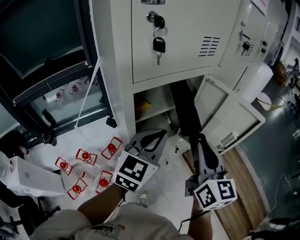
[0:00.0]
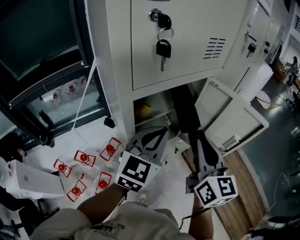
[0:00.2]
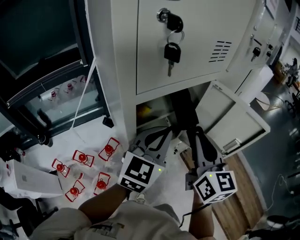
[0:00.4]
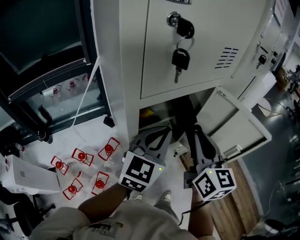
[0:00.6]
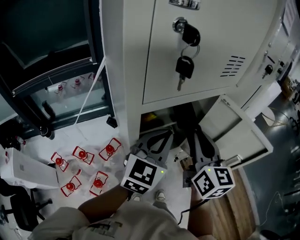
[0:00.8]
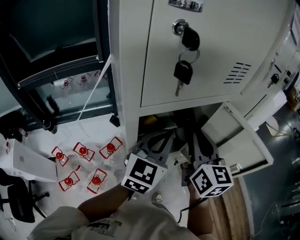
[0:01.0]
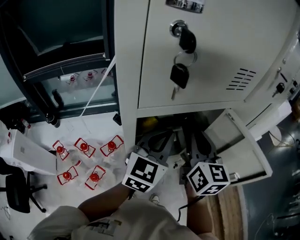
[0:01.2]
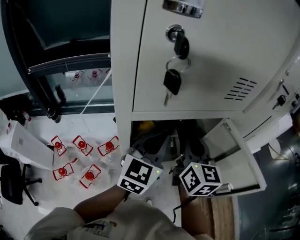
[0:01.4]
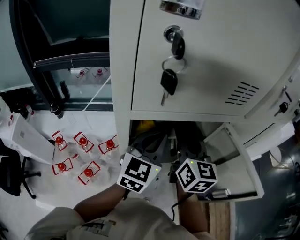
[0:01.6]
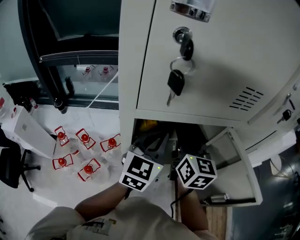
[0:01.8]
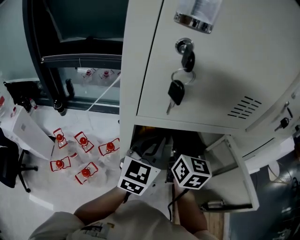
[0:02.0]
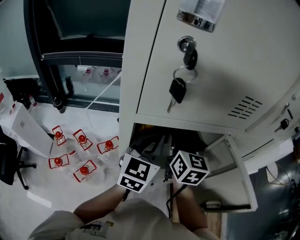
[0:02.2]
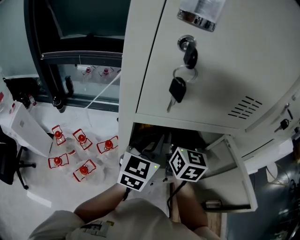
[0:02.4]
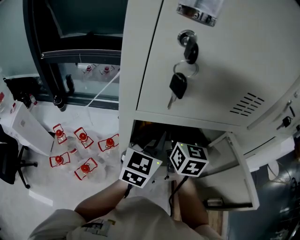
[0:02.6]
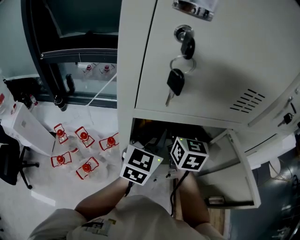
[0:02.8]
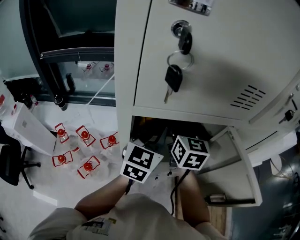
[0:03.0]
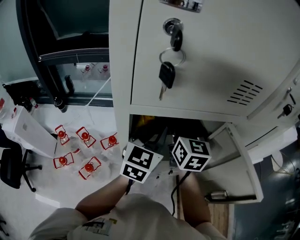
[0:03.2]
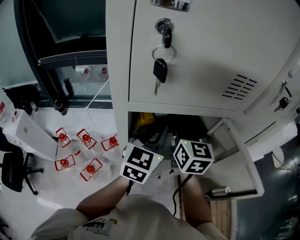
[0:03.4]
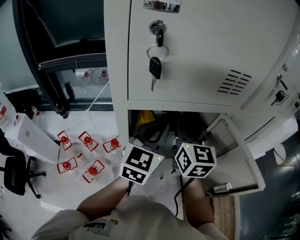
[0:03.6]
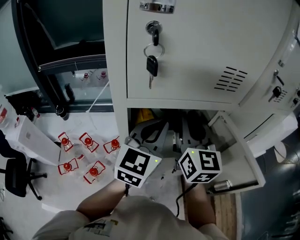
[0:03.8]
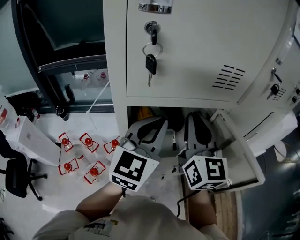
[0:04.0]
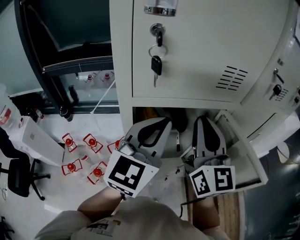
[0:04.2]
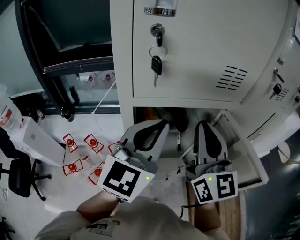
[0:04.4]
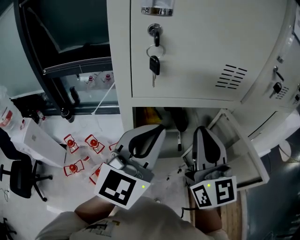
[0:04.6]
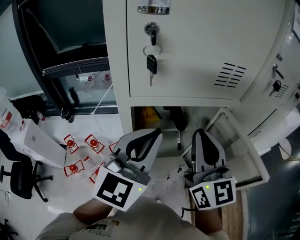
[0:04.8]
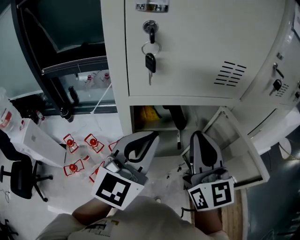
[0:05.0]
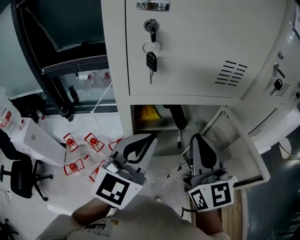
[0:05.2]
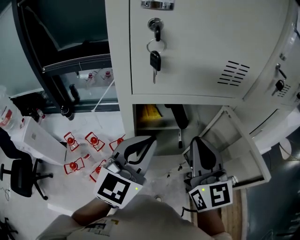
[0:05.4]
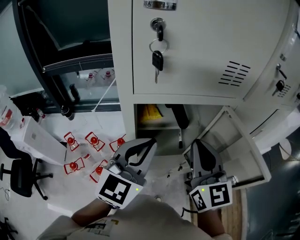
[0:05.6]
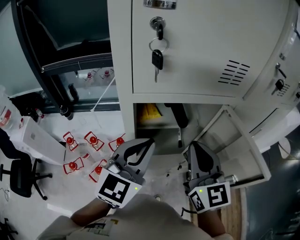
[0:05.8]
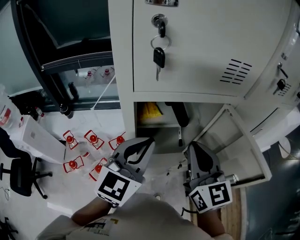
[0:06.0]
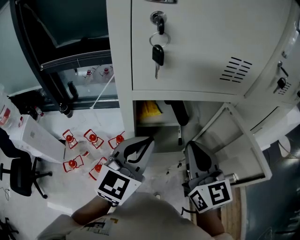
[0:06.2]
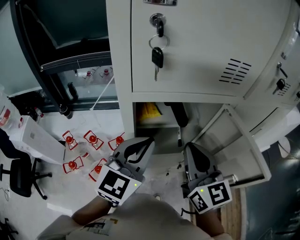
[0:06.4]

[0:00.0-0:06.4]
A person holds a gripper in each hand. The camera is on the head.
0:00.0 to 0:01.6: The right gripper heads forward and to the left, covering some 20 cm. Meanwhile the left gripper travels forward by some 10 cm, and swivels roughly 20 degrees.
0:01.6 to 0:03.2: The right gripper travels forward by approximately 5 cm, and opens its fingers.
0:03.2 to 0:04.8: The two grippers go some 20 cm backward and upward. The right gripper changes its angle by approximately 20 degrees, and closes up.
0:04.8 to 0:06.4: The grippers both shift downward by about 5 cm.

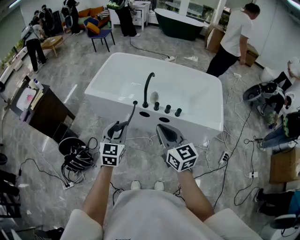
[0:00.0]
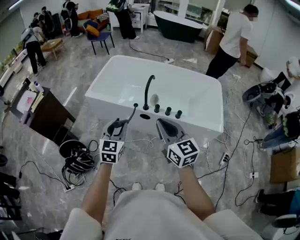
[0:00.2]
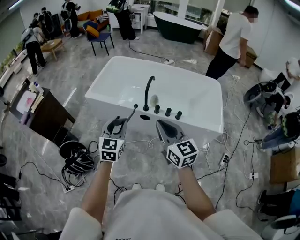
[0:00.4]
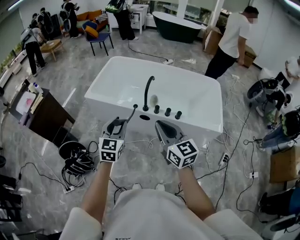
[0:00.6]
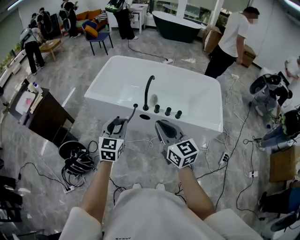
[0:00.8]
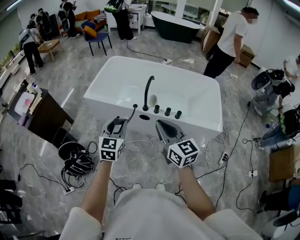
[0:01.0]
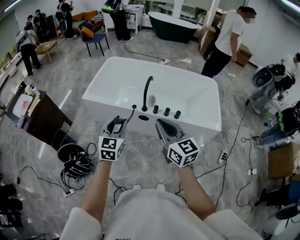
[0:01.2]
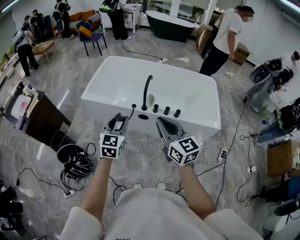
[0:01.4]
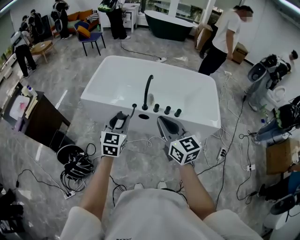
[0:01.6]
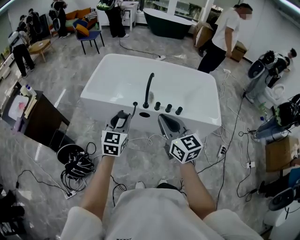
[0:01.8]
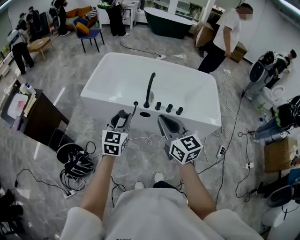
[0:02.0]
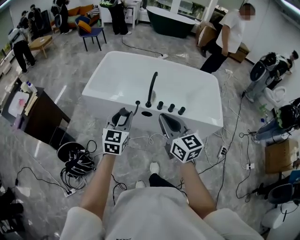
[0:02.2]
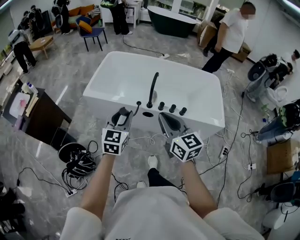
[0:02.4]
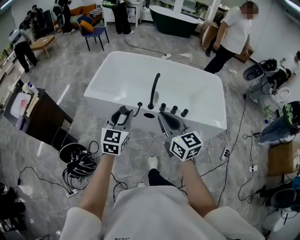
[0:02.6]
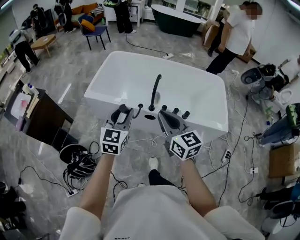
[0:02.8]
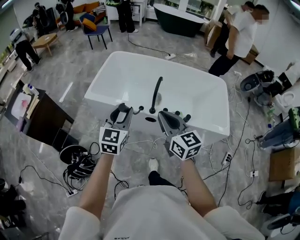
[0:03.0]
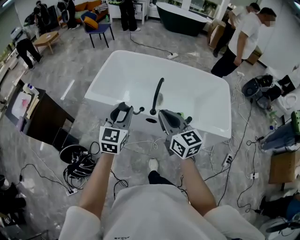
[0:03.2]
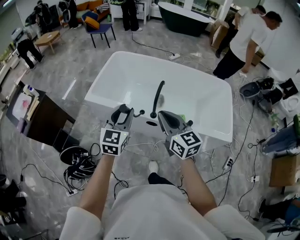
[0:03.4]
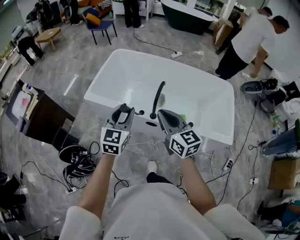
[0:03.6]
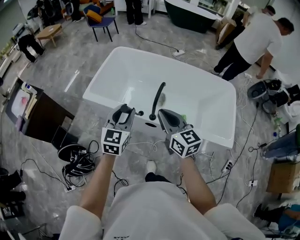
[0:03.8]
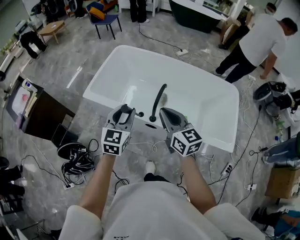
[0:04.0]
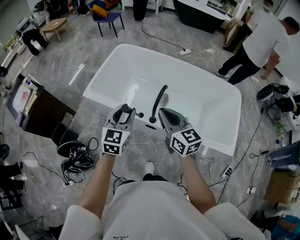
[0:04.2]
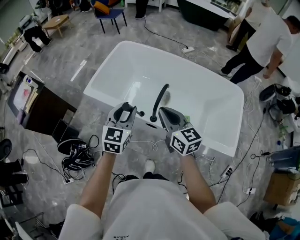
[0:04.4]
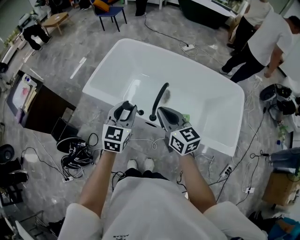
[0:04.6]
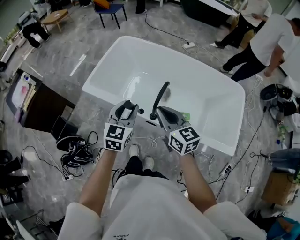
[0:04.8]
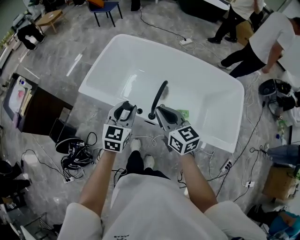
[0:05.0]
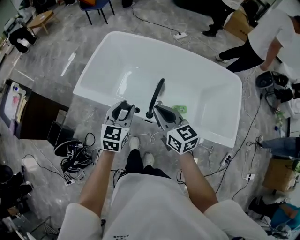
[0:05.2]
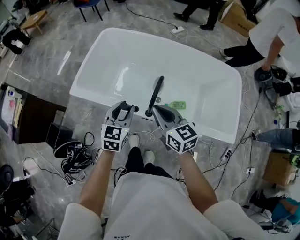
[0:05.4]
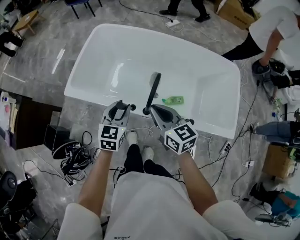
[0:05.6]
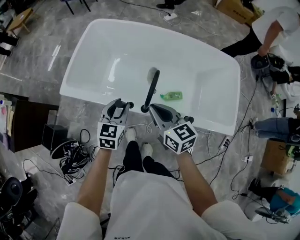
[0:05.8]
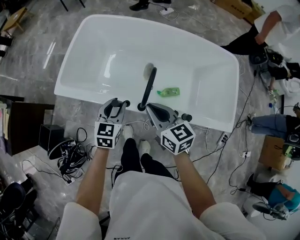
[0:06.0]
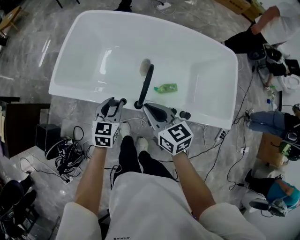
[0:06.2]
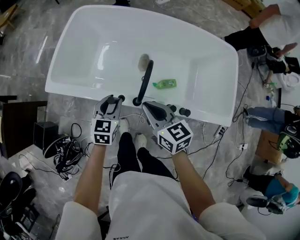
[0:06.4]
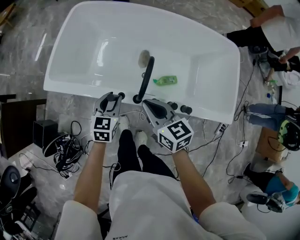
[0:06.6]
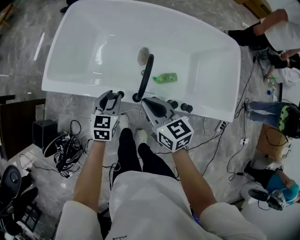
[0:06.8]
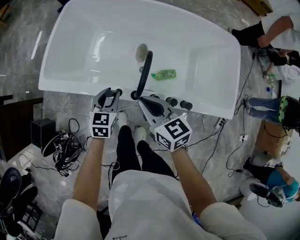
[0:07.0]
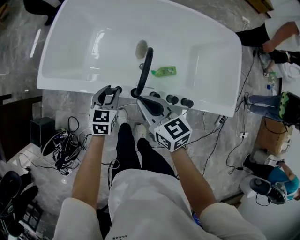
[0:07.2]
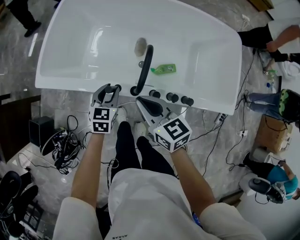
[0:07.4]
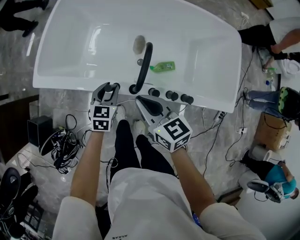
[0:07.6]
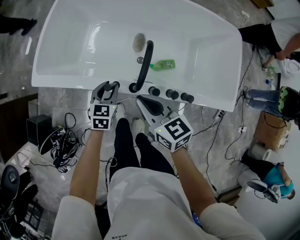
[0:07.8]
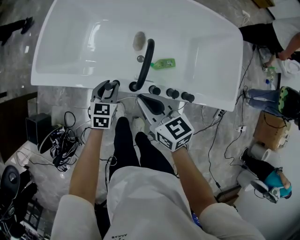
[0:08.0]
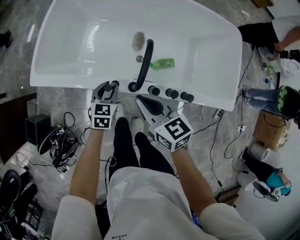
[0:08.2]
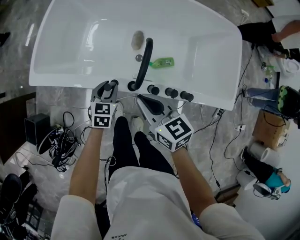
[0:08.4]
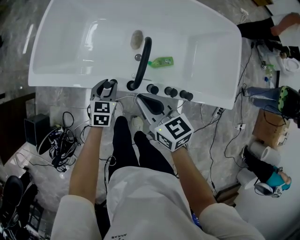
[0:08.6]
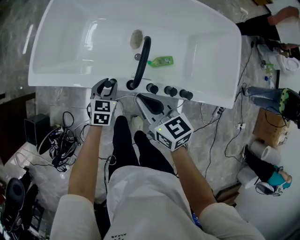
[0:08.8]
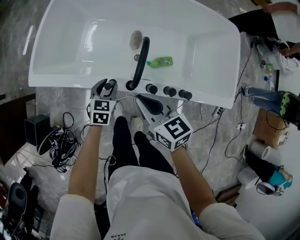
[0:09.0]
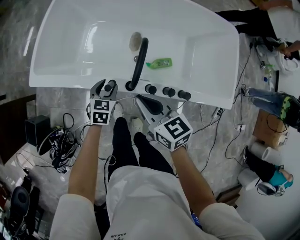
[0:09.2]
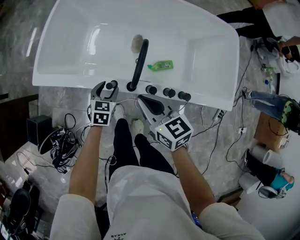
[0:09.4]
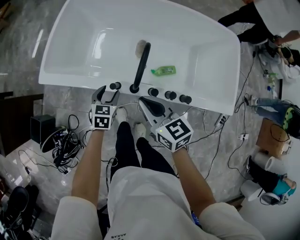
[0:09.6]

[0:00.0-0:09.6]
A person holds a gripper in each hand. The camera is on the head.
0:00.0 to 0:01.6: The left gripper travels forward by about 5 cm, while the right gripper shifts by some 5 cm.
0:01.6 to 0:03.2: Both grippers move forward, approximately 10 cm.
0:03.2 to 0:04.8: The right gripper goes roughly 15 cm forward and downward. The left gripper goes approximately 15 cm forward, downward and to the right.
0:04.8 to 0:06.4: The left gripper heads downward and forward, covering roughly 20 cm, while the right gripper goes roughly 15 cm downward and forward.
0:06.4 to 0:08.0: The left gripper is displaced downward by some 10 cm.
0:08.0 to 0:09.6: The left gripper opens up.

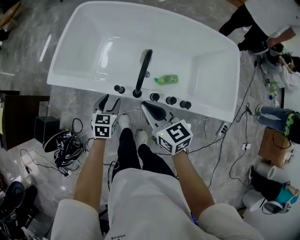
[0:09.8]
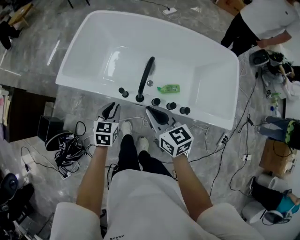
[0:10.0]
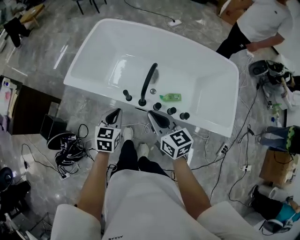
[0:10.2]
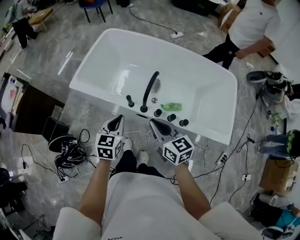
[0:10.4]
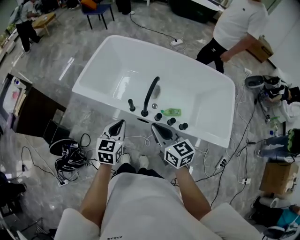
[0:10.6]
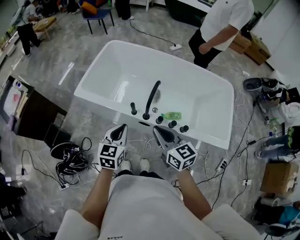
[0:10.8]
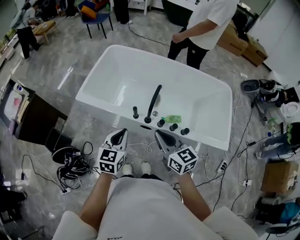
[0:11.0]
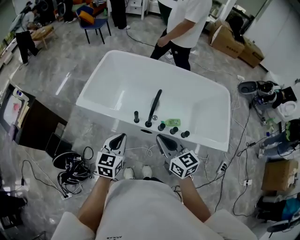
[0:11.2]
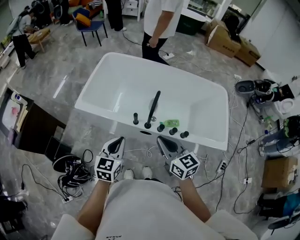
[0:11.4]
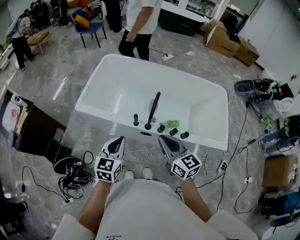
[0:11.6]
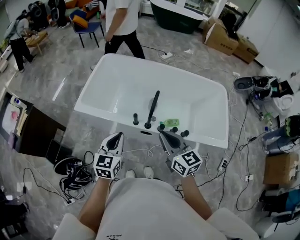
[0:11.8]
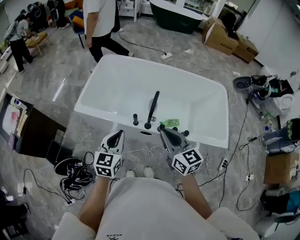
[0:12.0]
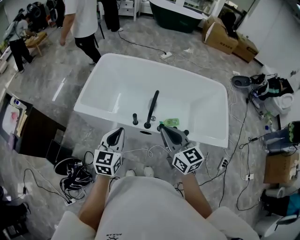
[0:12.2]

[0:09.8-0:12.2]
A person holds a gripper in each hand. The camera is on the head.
0:09.8 to 0:11.0: The left gripper travels upward and backward by some 25 cm, and closes. The right gripper goes some 15 cm upward and backward.
0:11.0 to 0:12.2: The right gripper shifts by some 5 cm, while the left gripper changes place by approximately 5 cm.

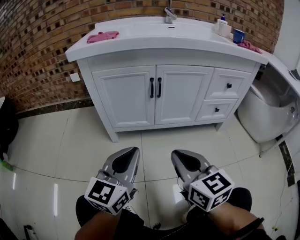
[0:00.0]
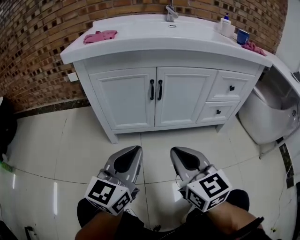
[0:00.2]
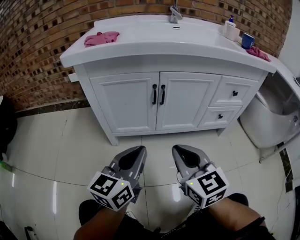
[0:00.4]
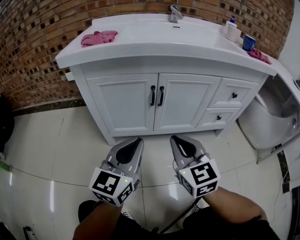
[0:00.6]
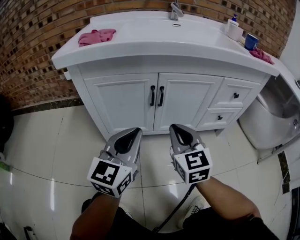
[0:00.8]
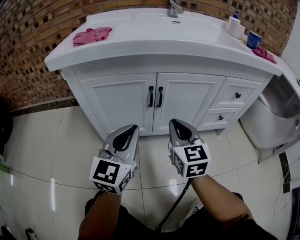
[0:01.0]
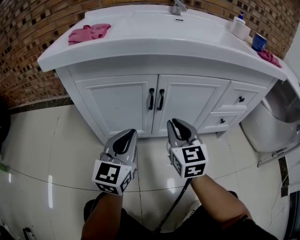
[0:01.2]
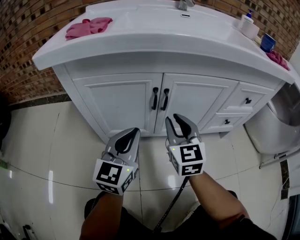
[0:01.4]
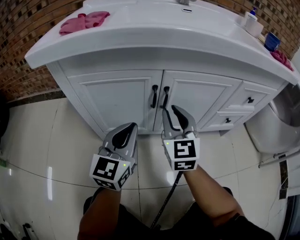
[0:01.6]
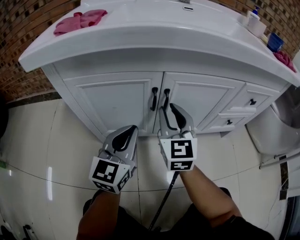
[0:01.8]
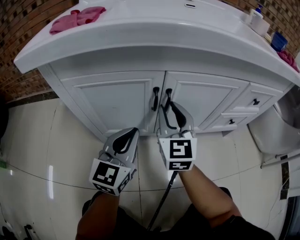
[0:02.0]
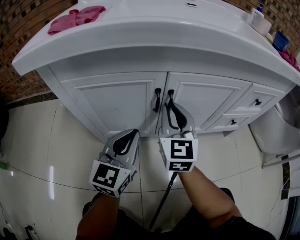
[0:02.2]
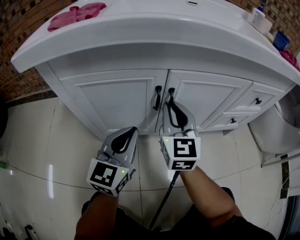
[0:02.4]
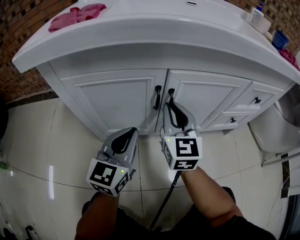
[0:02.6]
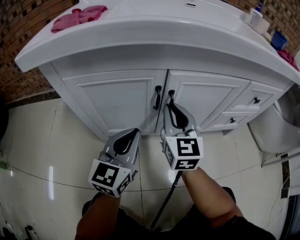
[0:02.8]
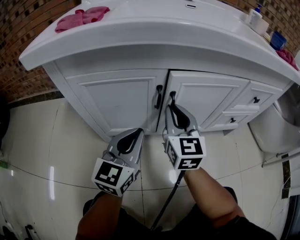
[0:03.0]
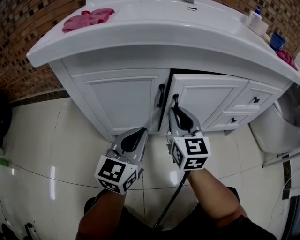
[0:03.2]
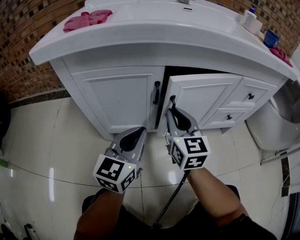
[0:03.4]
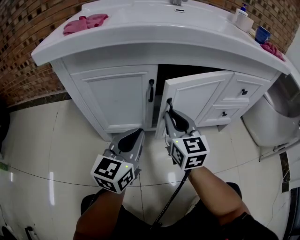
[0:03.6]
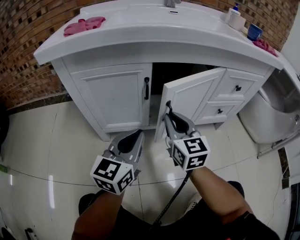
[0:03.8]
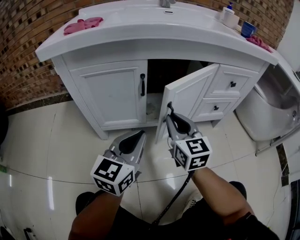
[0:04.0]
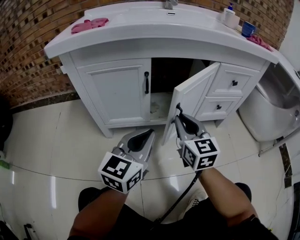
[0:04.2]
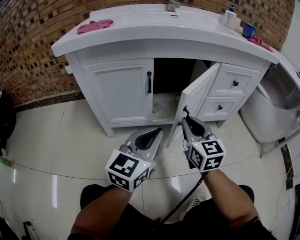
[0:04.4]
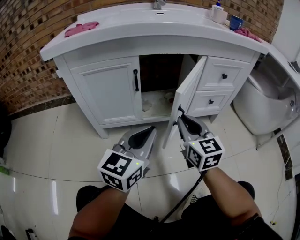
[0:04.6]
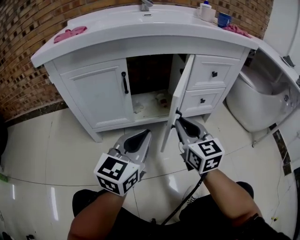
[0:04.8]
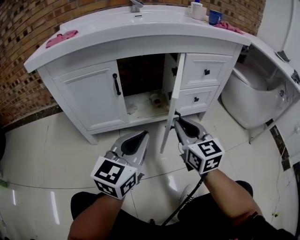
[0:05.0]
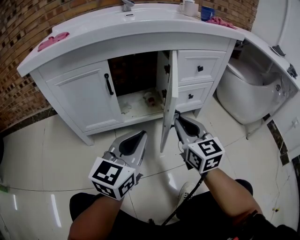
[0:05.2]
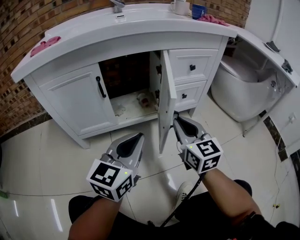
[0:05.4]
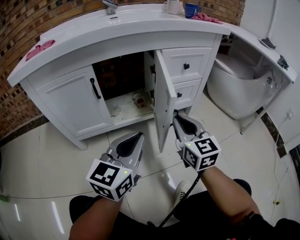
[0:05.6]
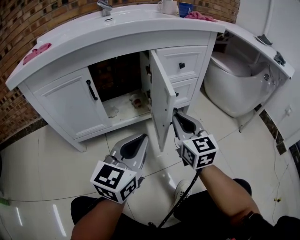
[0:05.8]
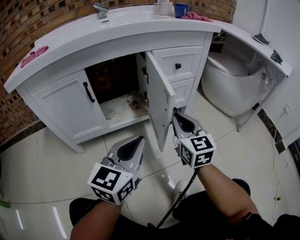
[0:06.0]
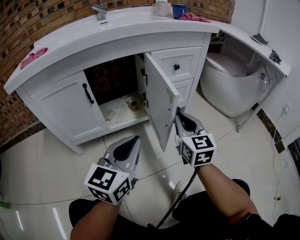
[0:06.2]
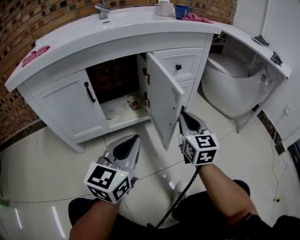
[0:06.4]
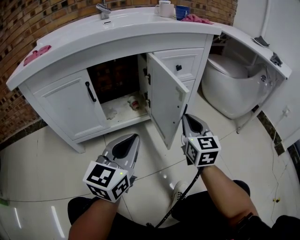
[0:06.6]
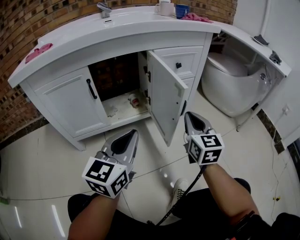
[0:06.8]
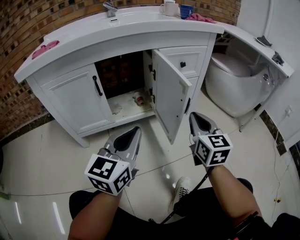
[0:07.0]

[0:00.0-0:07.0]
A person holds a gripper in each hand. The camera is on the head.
0:00.0 to 0:01.4: The grippers both shift forward by roughly 25 cm. The right gripper changes its angle by some 20 degrees, and opens.
0:01.4 to 0:02.8: The right gripper moves some 5 cm.
0:02.8 to 0:04.2: Both grippers travel together backward and to the right, about 15 cm.
0:04.2 to 0:05.6: Both grippers travel together to the right, roughly 15 cm.
0:05.6 to 0:07.0: The right gripper goes approximately 5 cm to the right.
